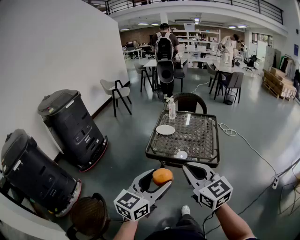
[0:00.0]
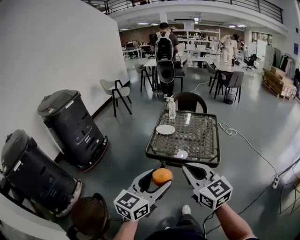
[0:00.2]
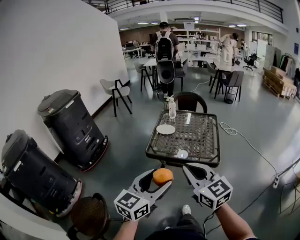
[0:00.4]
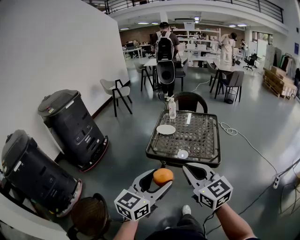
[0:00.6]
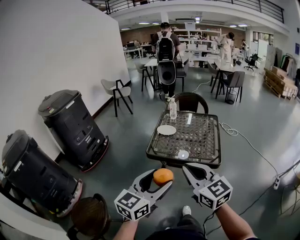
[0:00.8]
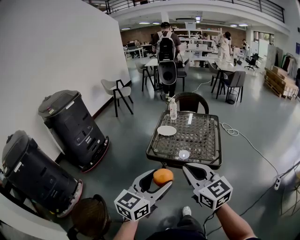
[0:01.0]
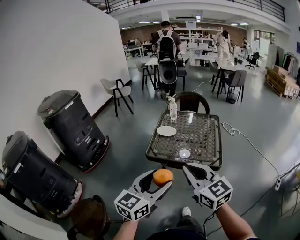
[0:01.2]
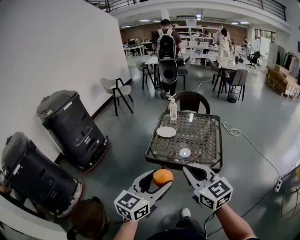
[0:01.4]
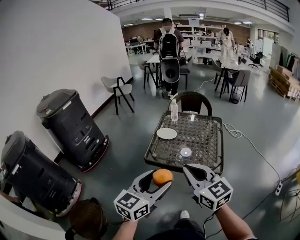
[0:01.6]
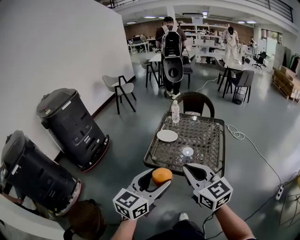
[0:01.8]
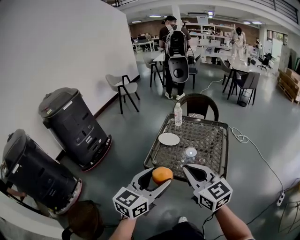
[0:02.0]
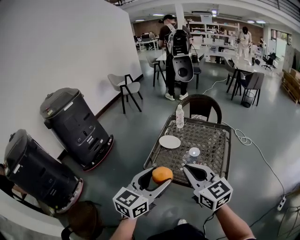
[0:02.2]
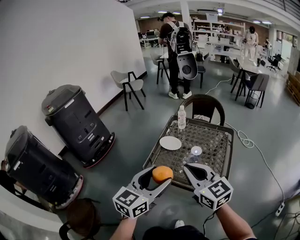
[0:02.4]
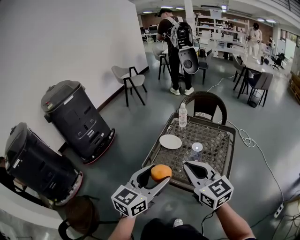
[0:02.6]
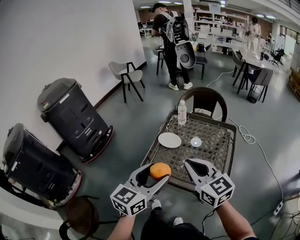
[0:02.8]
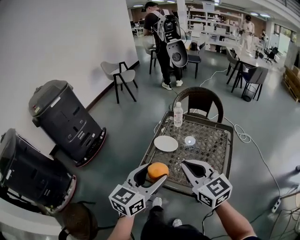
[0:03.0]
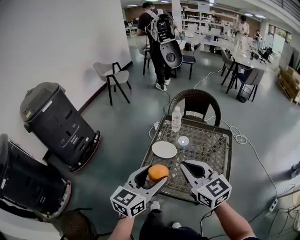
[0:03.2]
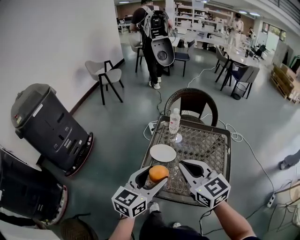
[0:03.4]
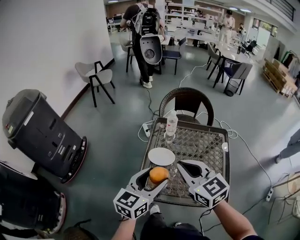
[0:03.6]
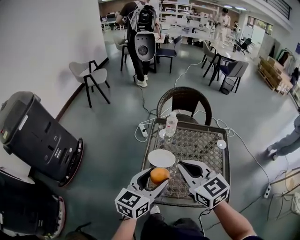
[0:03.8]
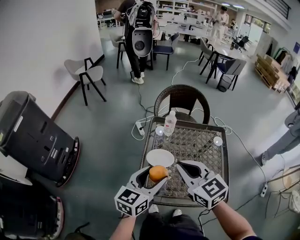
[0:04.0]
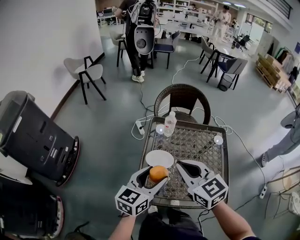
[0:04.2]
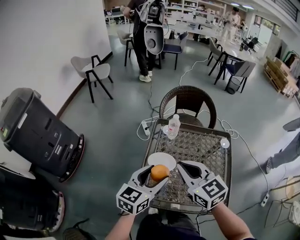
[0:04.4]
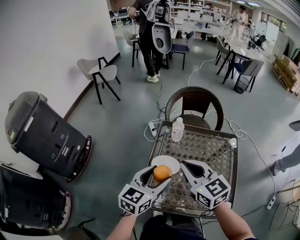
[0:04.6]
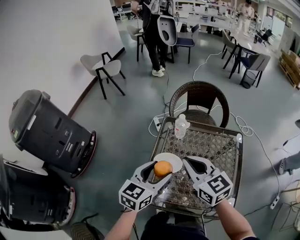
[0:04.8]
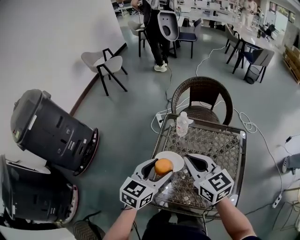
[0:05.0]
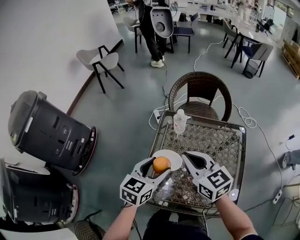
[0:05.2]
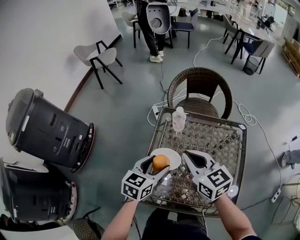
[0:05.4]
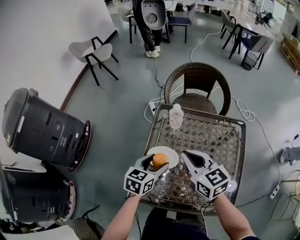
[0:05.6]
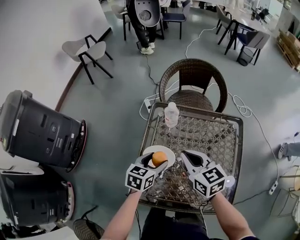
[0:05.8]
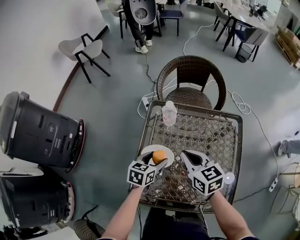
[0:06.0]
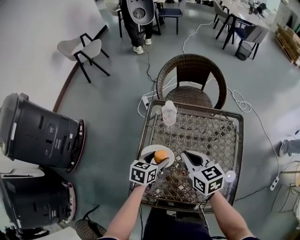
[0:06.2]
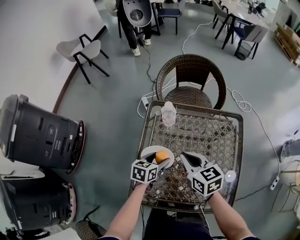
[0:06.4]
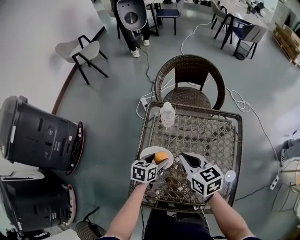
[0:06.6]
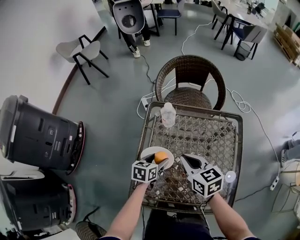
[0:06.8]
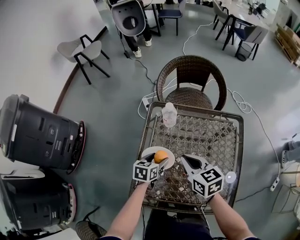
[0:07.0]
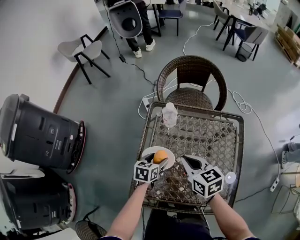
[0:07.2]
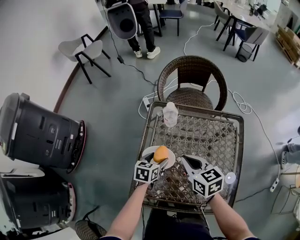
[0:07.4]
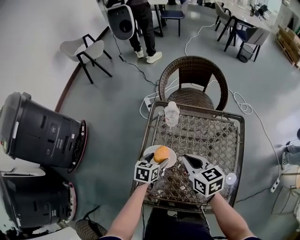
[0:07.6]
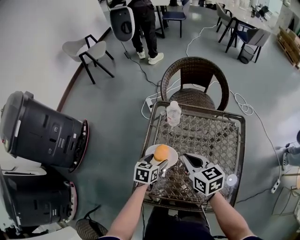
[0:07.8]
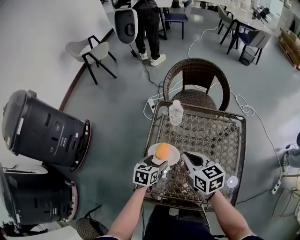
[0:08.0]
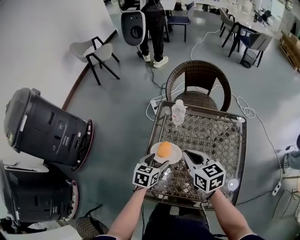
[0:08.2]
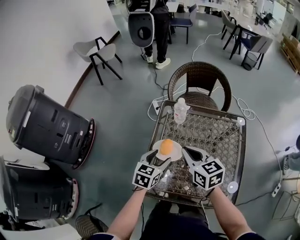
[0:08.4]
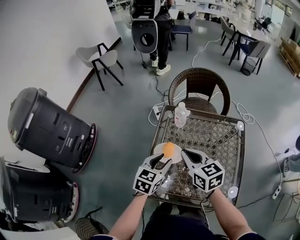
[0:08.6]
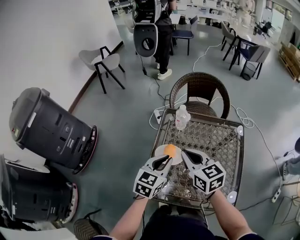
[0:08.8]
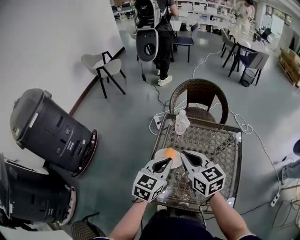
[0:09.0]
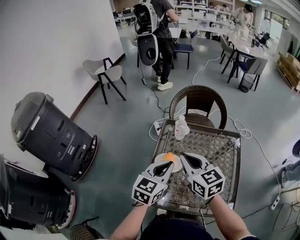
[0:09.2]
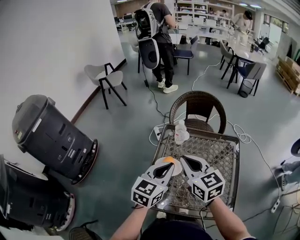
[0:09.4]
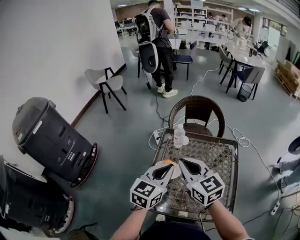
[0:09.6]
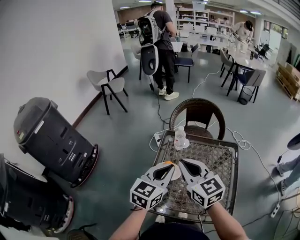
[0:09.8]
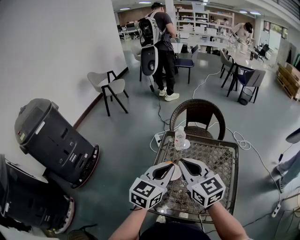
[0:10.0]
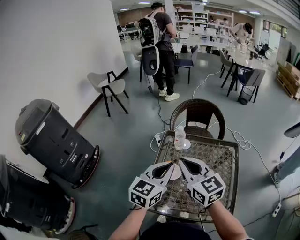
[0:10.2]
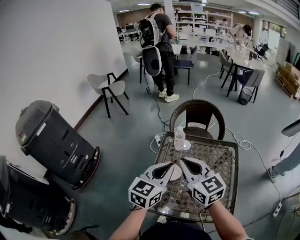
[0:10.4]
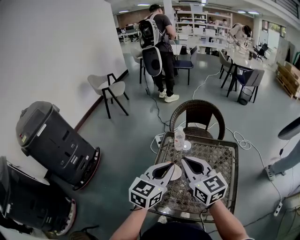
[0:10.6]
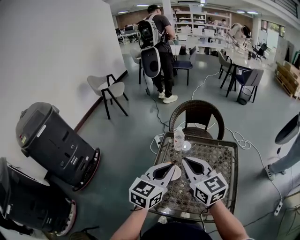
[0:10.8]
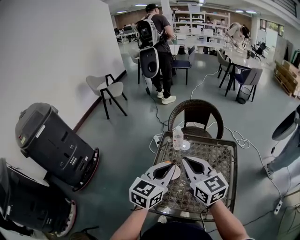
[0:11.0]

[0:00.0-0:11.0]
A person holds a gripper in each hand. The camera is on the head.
0:00.0 to 0:01.6: The grippers both shift forward by approximately 10 cm.
0:01.6 to 0:03.2: The two grippers go approximately 30 cm forward.
0:03.2 to 0:04.8: Both grippers move forward, approximately 20 cm.
0:04.8 to 0:06.2: The right gripper travels downward and to the right by approximately 15 cm, and swivels roughly 20 degrees, while the left gripper goes approximately 20 cm downward, and rotates roughly 30 degrees.
0:06.2 to 0:07.8: The grippers stay close to where they were, moving slightly.
0:07.8 to 0:09.4: The left gripper goes some 30 cm upward, tips its fingers upward by approximately 30 degrees, and closes, while the right gripper moves upward, approximately 15 cm, and turns by some 20 degrees.
0:09.4 to 0:11.0: The left gripper moves roughly 5 cm; the right gripper changes place by roughly 5 cm.

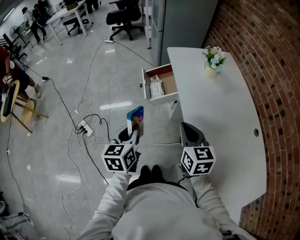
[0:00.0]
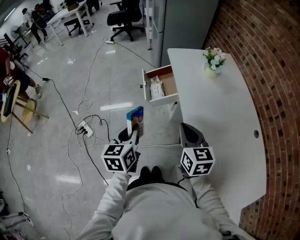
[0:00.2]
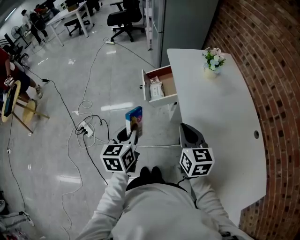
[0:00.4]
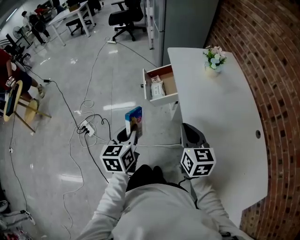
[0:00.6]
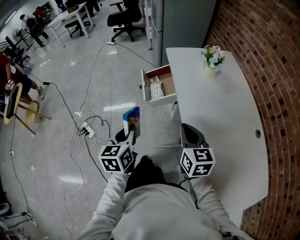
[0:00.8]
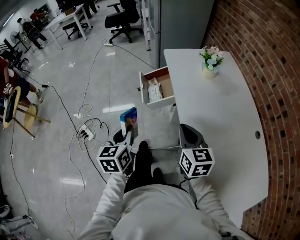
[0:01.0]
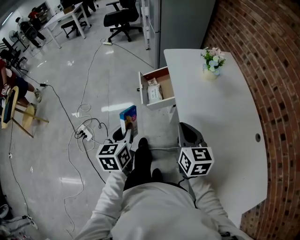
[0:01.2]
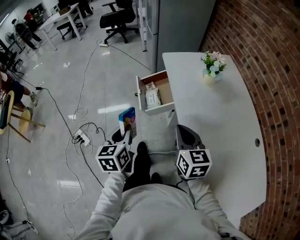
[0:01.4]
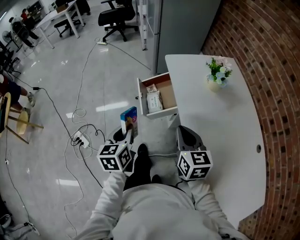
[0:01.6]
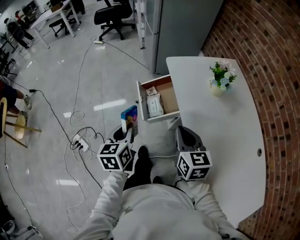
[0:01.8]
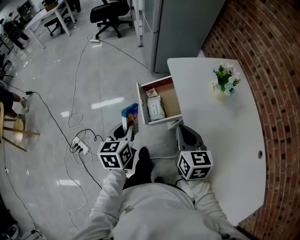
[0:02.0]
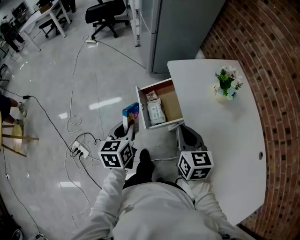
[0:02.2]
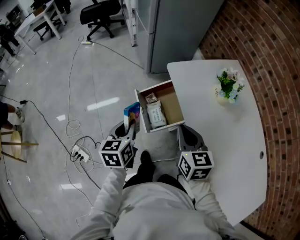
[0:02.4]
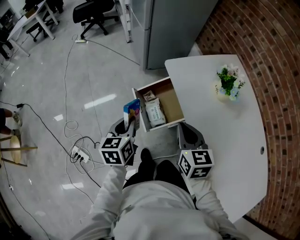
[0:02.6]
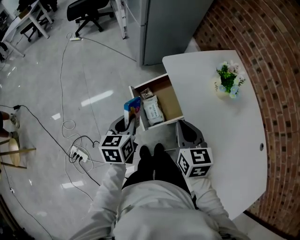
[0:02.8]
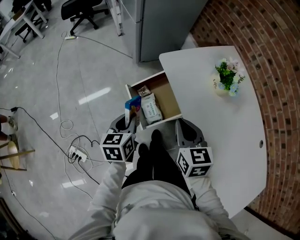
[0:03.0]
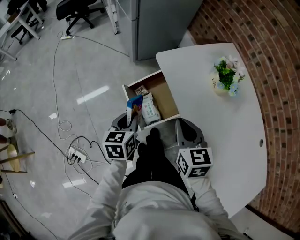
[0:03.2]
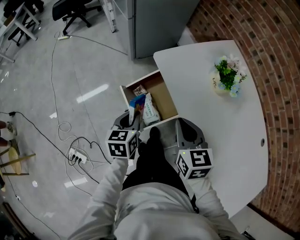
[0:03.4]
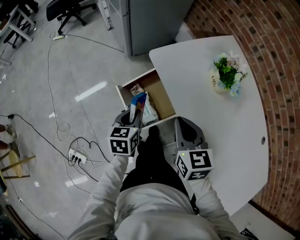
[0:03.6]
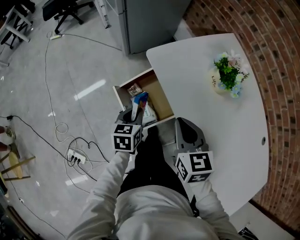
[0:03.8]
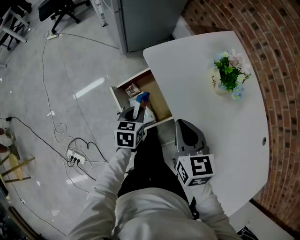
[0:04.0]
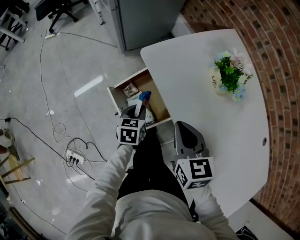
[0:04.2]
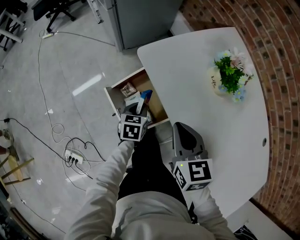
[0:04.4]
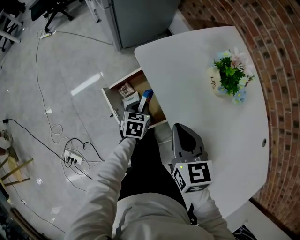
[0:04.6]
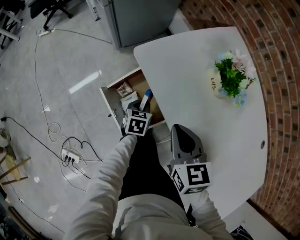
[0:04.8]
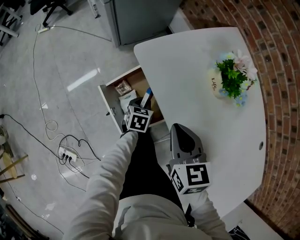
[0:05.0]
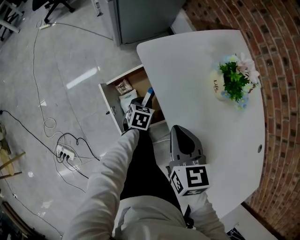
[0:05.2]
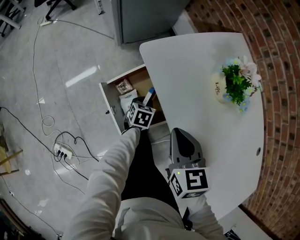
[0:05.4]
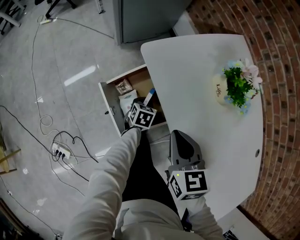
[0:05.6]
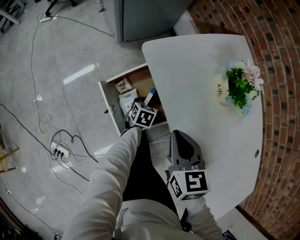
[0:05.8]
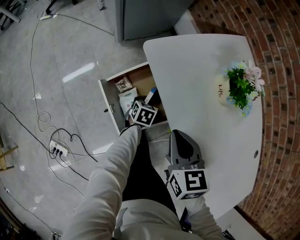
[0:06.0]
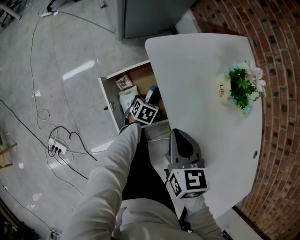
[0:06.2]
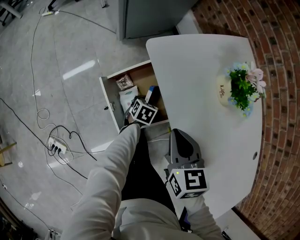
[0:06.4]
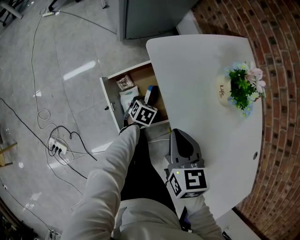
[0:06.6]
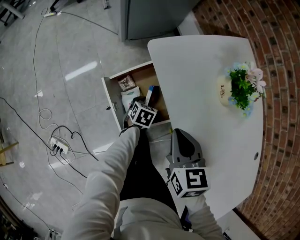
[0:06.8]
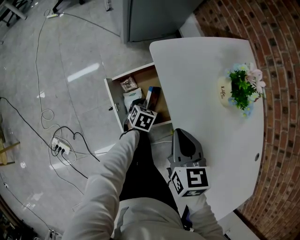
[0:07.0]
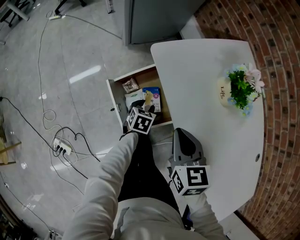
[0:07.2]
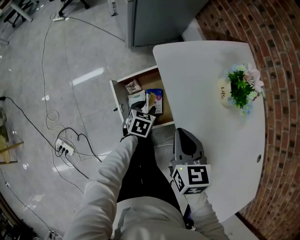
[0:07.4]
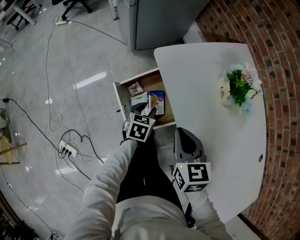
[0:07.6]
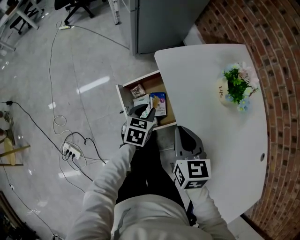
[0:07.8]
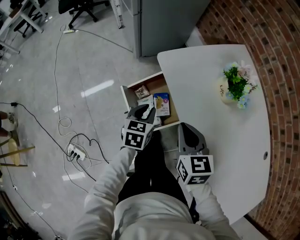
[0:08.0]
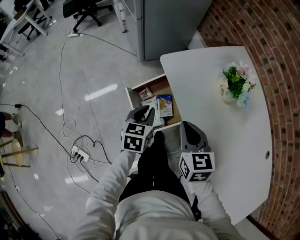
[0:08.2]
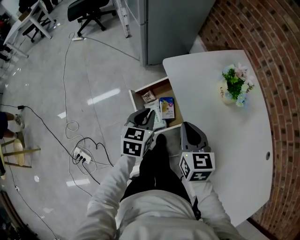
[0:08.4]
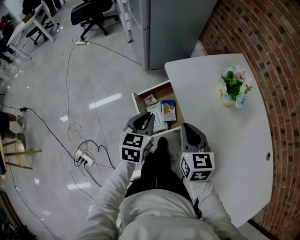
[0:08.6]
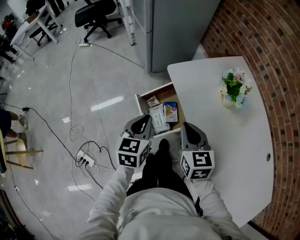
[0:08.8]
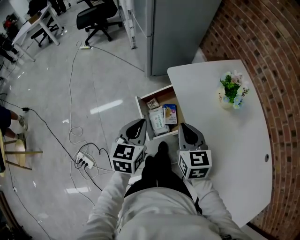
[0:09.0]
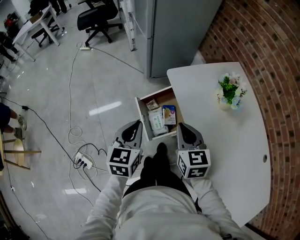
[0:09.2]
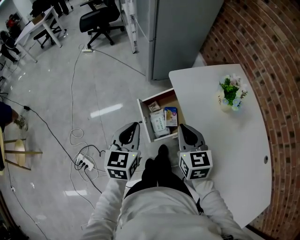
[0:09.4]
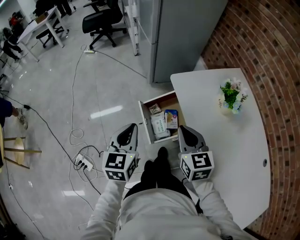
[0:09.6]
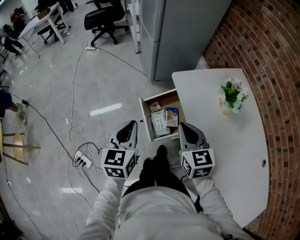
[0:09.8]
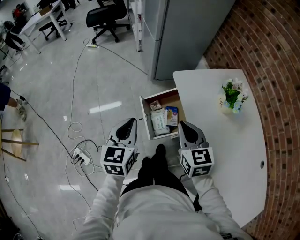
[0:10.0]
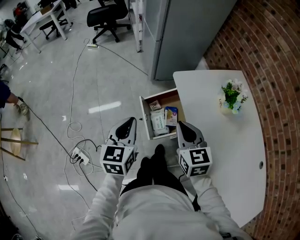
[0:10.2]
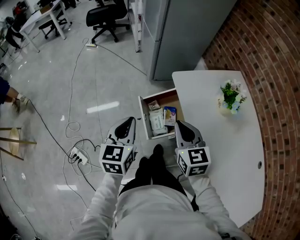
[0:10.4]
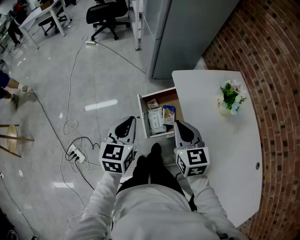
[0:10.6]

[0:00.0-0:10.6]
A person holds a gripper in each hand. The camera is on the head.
0:00.0 to 0:01.6: Both grippers travel together forward, about 15 cm.
0:01.6 to 0:03.0: The two grippers go some 20 cm forward.
0:03.0 to 0:04.6: The right gripper shifts about 10 cm forward, downward and to the right. The left gripper travels downward, to the right and forward by approximately 30 cm, and rotates about 20 degrees.
0:04.6 to 0:06.0: The left gripper goes about 10 cm downward.
0:06.0 to 0:07.6: The left gripper heads upward and to the left, covering roughly 10 cm, and opens up.
0:07.6 to 0:09.0: The right gripper shifts some 5 cm upward, while the left gripper is displaced upward, to the left and backward by approximately 30 cm, turns by roughly 20 degrees, and closes its fingers.
0:09.0 to 0:10.6: The right gripper shifts by some 5 cm. The left gripper heads to the left, covering approximately 5 cm.

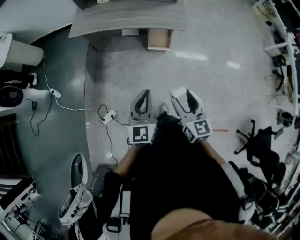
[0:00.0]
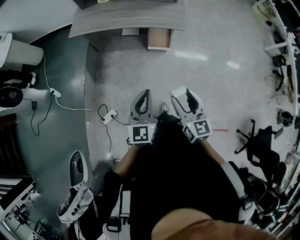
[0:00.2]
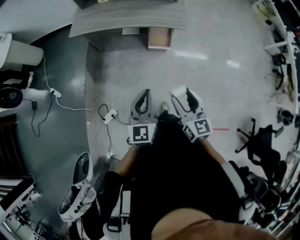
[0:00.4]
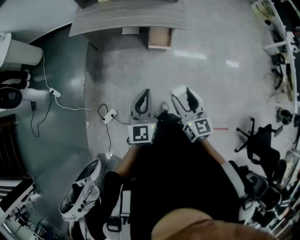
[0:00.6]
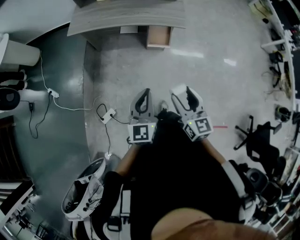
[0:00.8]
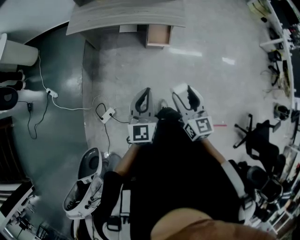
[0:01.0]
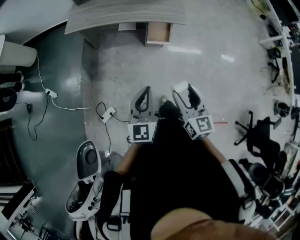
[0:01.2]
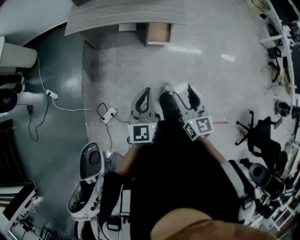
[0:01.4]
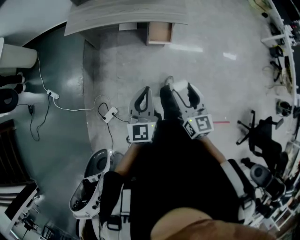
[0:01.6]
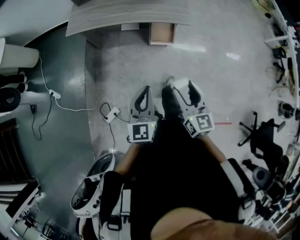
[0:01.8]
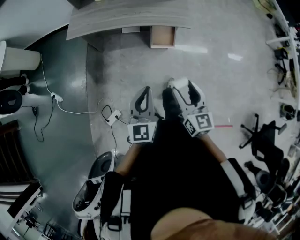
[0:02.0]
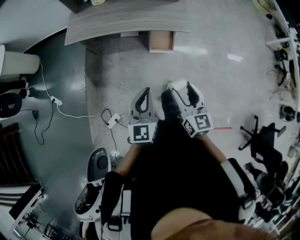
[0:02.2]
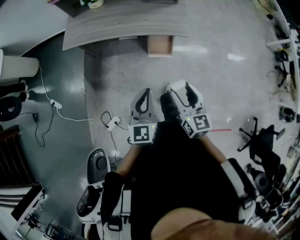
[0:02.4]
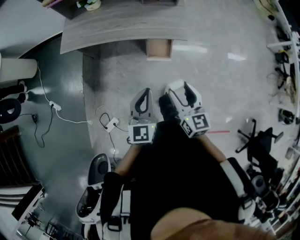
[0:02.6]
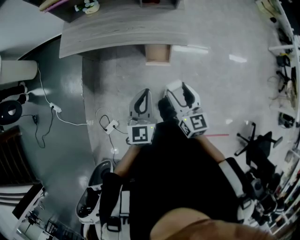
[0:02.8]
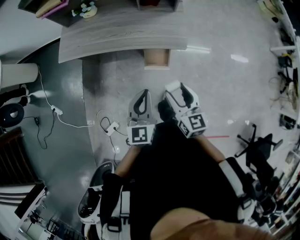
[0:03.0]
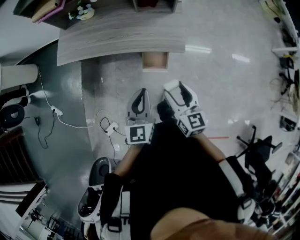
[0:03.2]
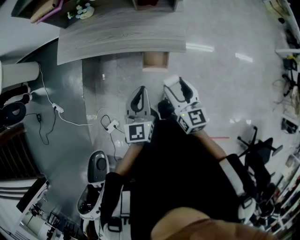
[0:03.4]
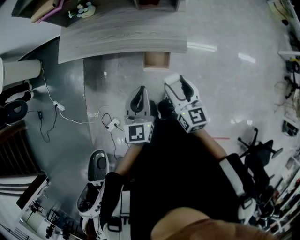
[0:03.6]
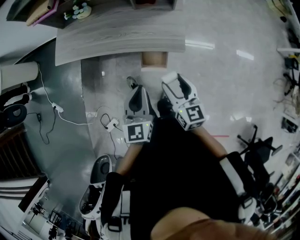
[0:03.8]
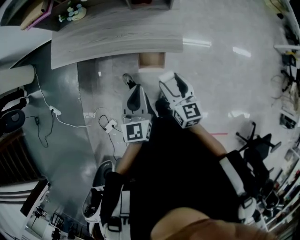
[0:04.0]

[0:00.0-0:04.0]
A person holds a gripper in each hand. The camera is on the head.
0:00.0 to 0:01.4: The left gripper goes approximately 5 cm to the left.
0:01.4 to 0:02.6: The two grippers go about 20 cm forward.
0:02.6 to 0:04.0: The right gripper heads forward, covering roughly 20 cm, while the left gripper moves forward and to the right, roughly 20 cm.
